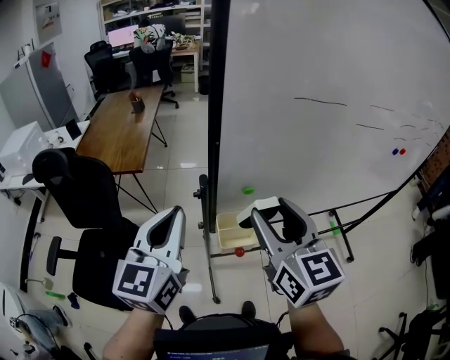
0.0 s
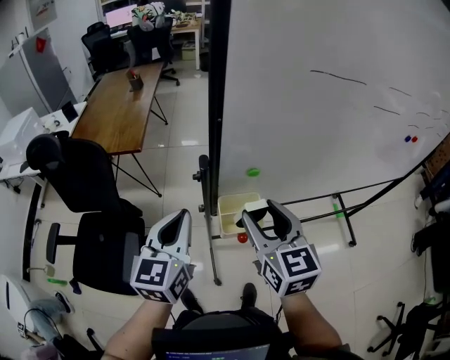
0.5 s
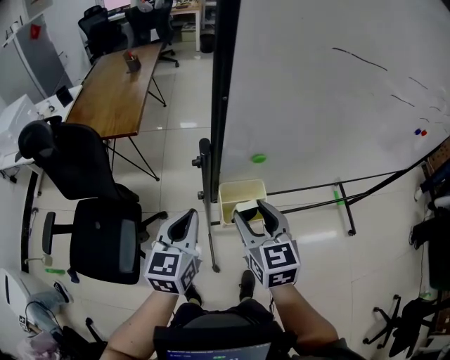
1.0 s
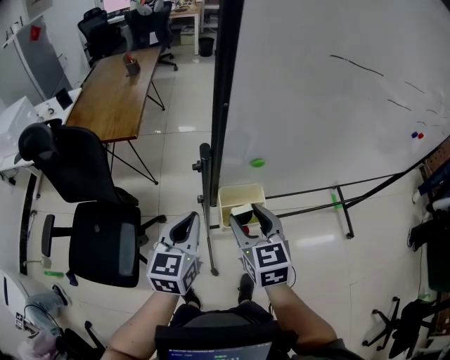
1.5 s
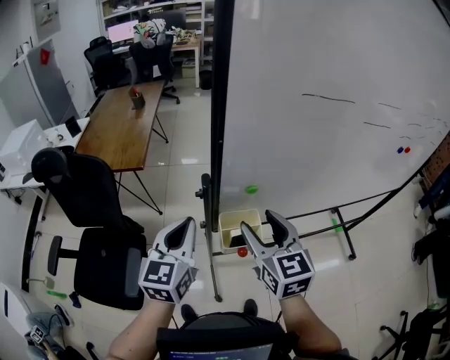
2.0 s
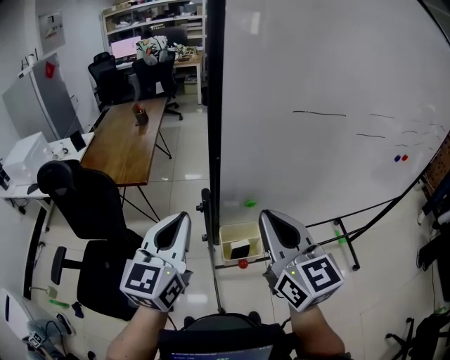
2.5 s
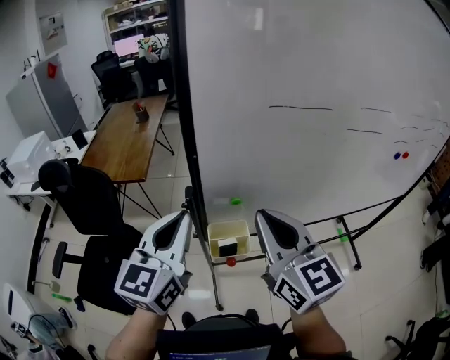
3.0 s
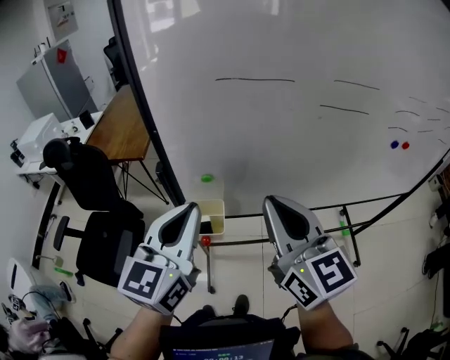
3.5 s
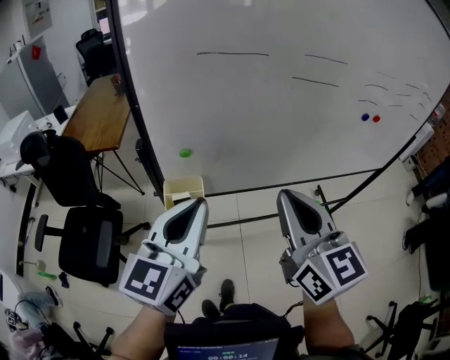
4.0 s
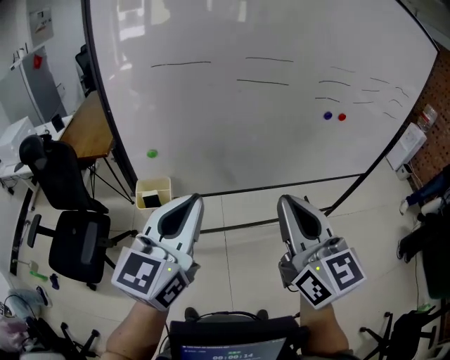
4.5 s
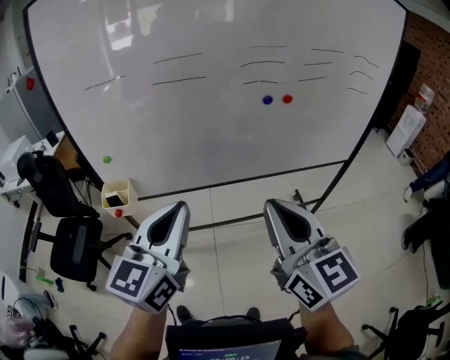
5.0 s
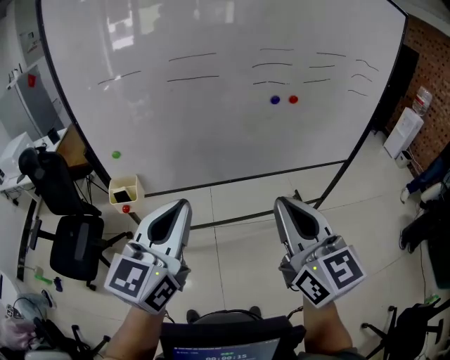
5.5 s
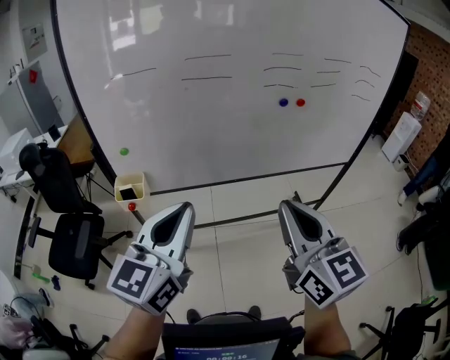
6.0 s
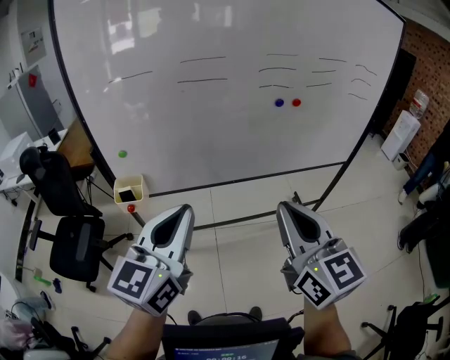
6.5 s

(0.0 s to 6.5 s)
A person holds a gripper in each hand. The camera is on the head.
0.0 s - 2.0 s: The grippers both shift downward by roughly 10 cm.
2.0 s - 4.5 s: The grippers both shift to the right, backward and upward by approximately 40 cm. The right gripper closes.
4.5 s - 6.5 s: The grippers both shift to the right and backward by roughly 15 cm.

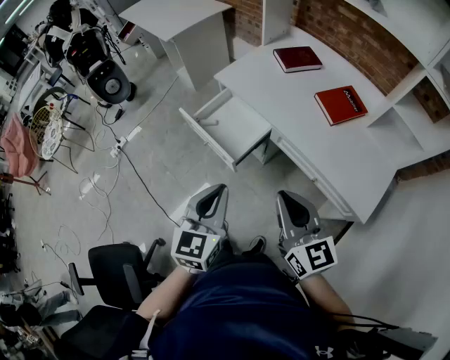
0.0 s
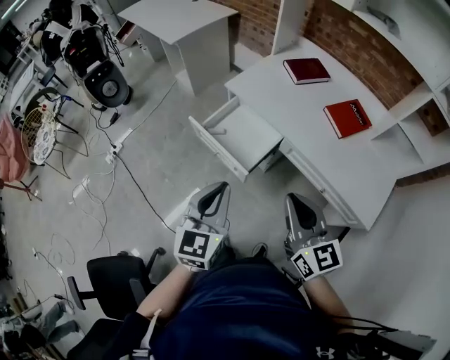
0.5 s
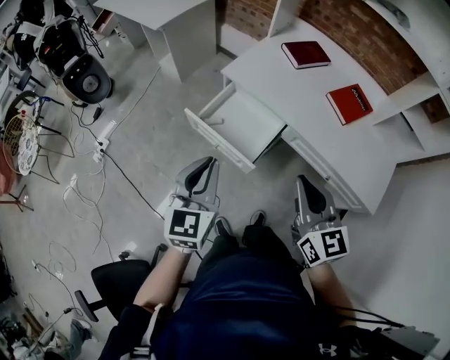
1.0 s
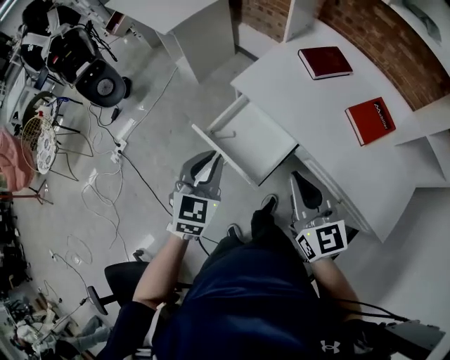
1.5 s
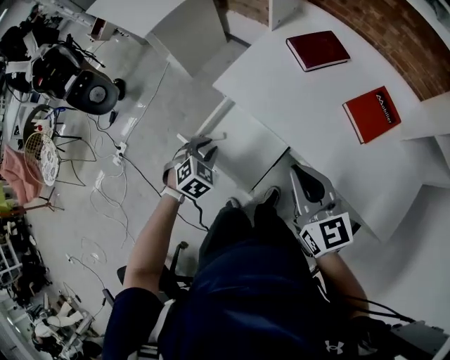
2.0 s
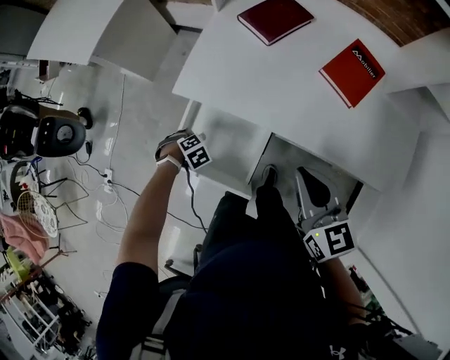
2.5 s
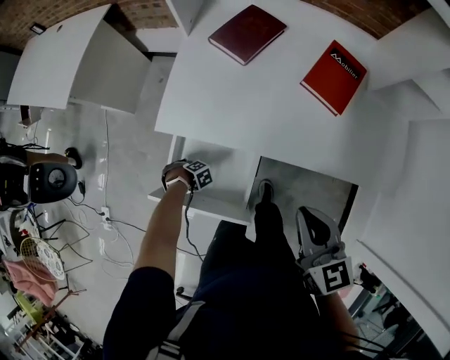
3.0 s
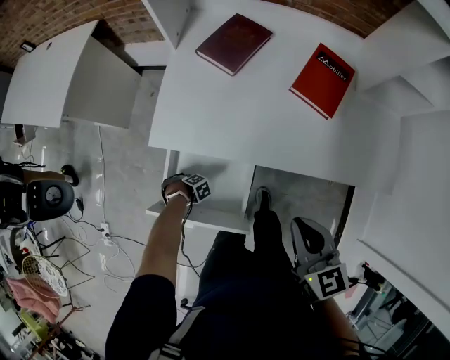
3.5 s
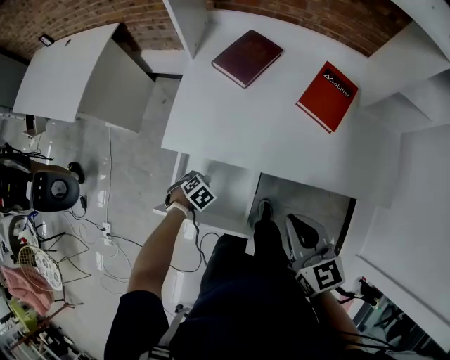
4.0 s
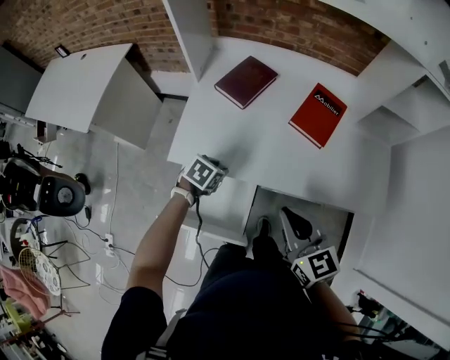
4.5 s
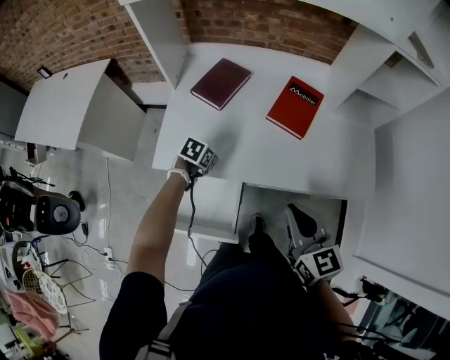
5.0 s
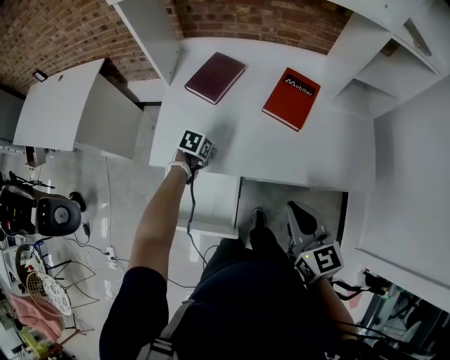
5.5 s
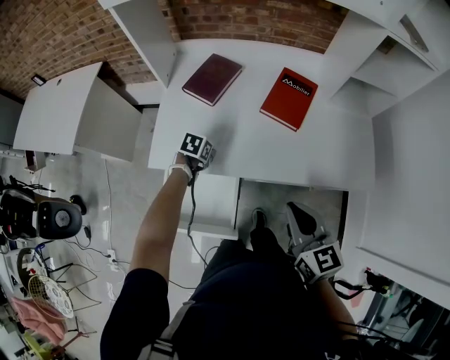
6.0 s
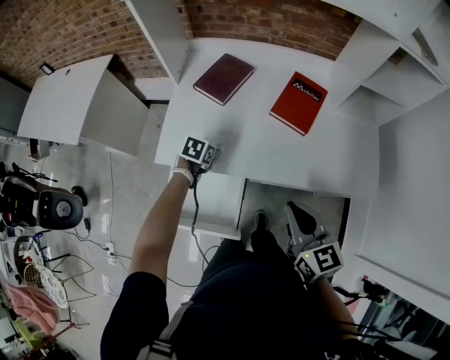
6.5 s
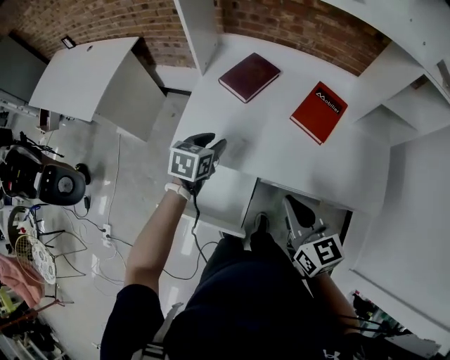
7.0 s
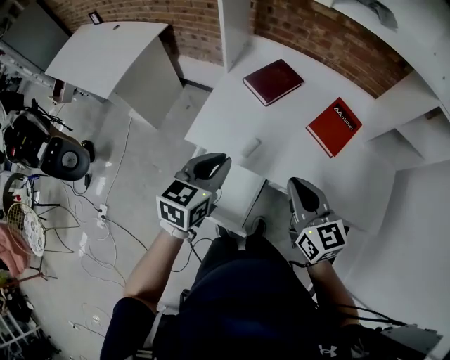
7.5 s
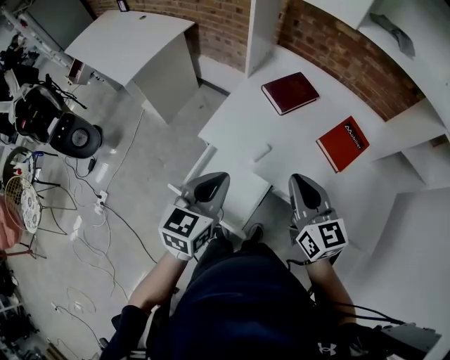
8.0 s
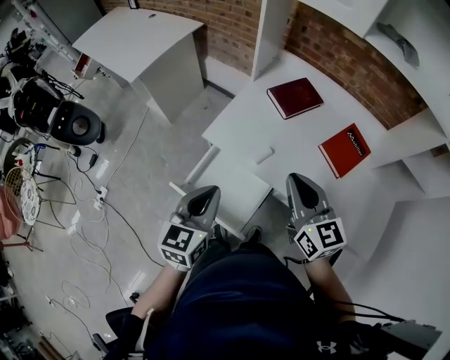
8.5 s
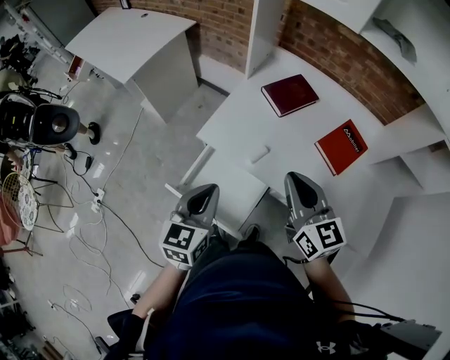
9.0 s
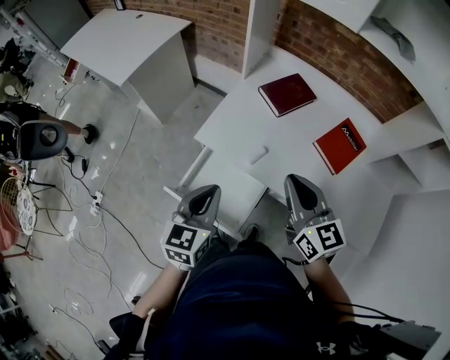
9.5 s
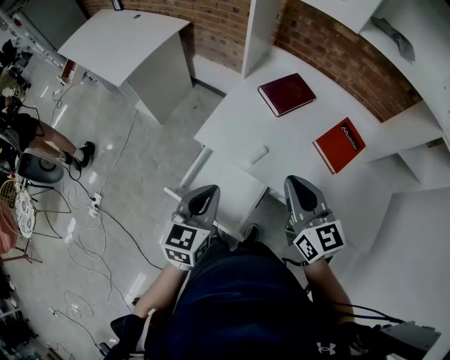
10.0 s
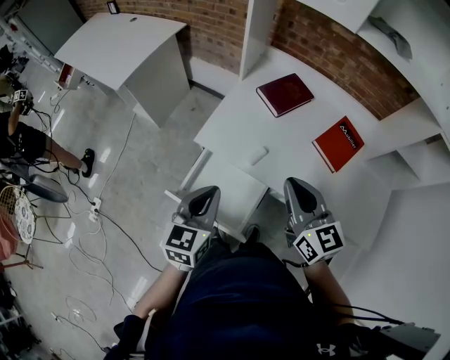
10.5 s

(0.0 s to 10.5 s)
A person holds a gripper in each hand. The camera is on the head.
0.0 s - 2.0 s: The right gripper is displaced forward by roughly 25 cm. The left gripper travels forward and downward by about 40 cm, angles its fingers downward, by some 40 degrees, and opens.
2.0 s - 4.0 s: The left gripper is displaced downward by about 20 cm, and turns by some 40 degrees, while the right gripper changes place by roughly 5 cm, and changes its angle by about 30 degrees.
4.0 s - 6.5 s: The left gripper changes place by approximately 25 cm, and swivels approximately 30 degrees. Meanwhile the right gripper ends up about 10 cm from where it was.
6.5 s - 8.5 s: The right gripper ends up about 15 cm from where it was, and rotates approximately 30 degrees; the left gripper travels upward by about 25 cm, points its fingers some 40 degrees further upward, and closes its fingers.
8.5 s - 10.5 s: There are only small adjustments of the grippers.

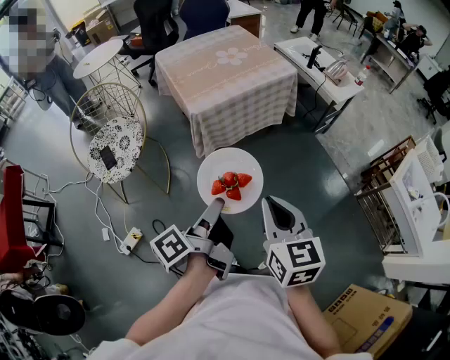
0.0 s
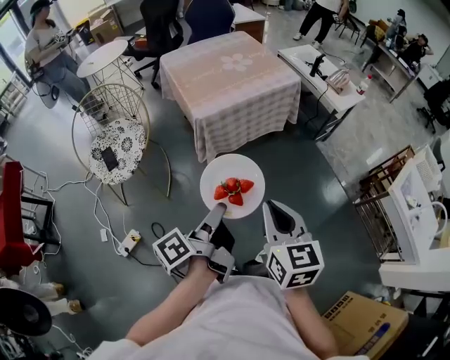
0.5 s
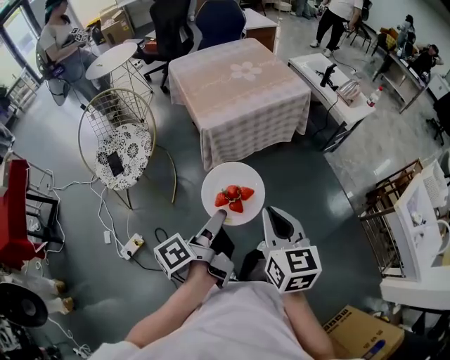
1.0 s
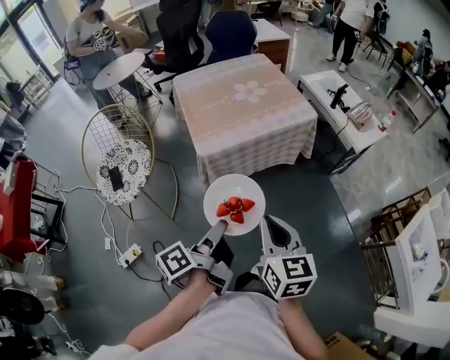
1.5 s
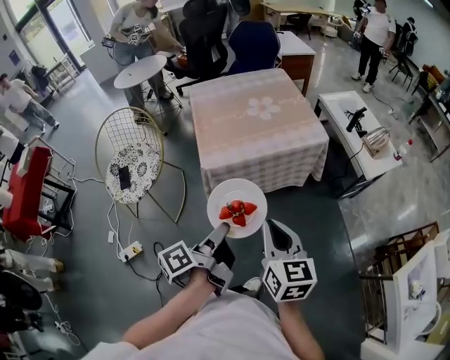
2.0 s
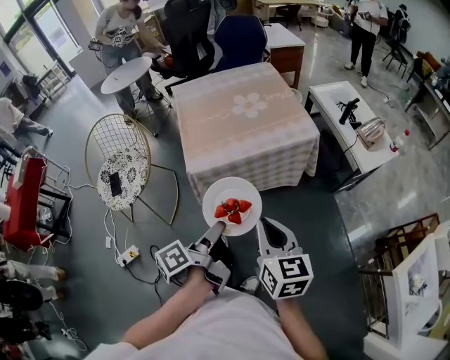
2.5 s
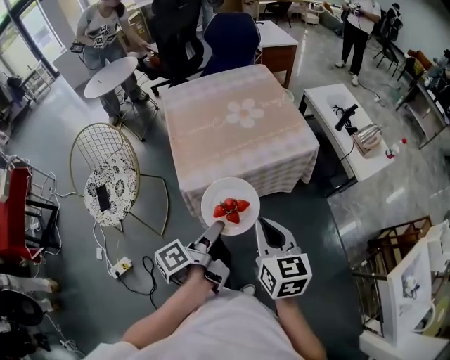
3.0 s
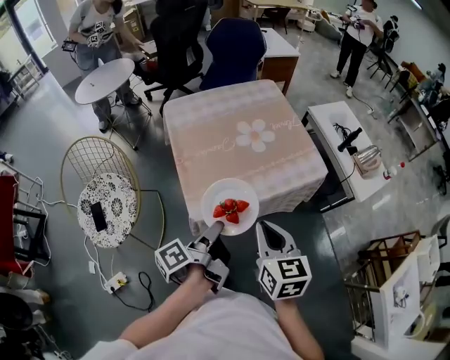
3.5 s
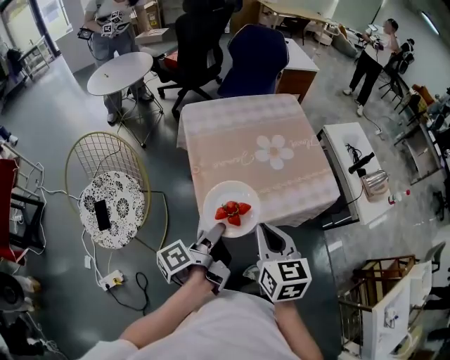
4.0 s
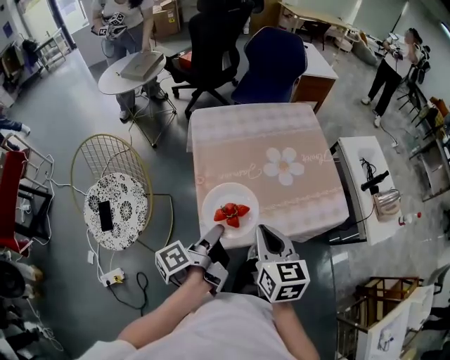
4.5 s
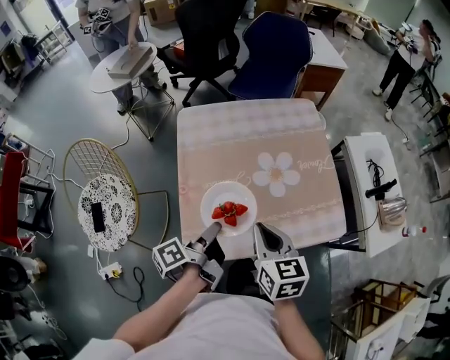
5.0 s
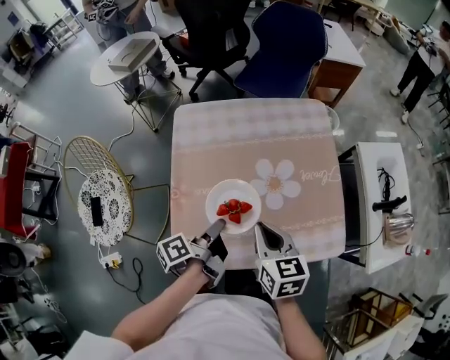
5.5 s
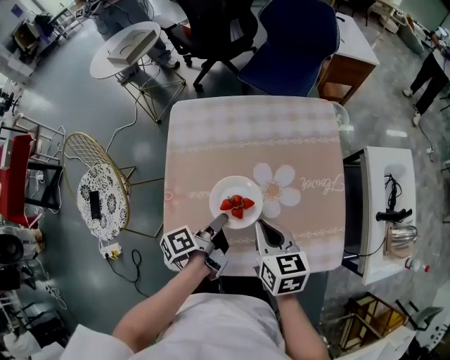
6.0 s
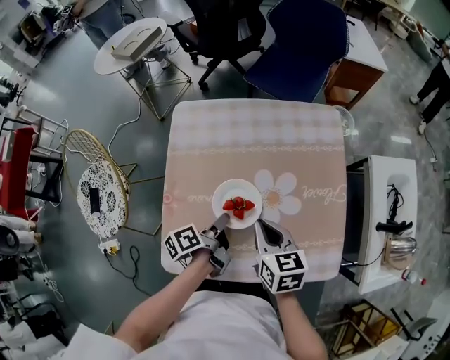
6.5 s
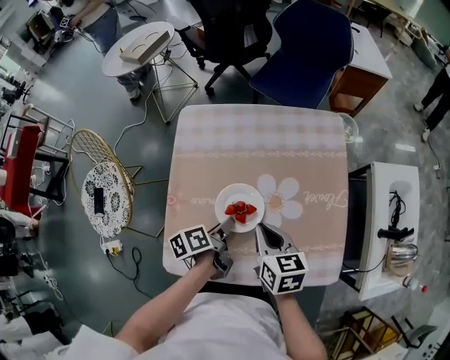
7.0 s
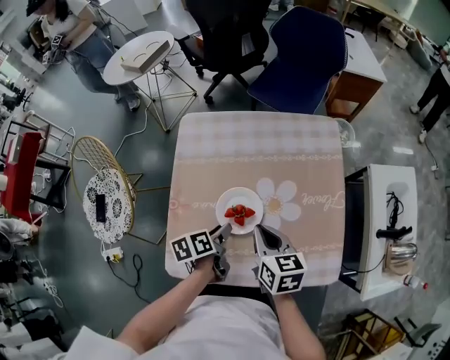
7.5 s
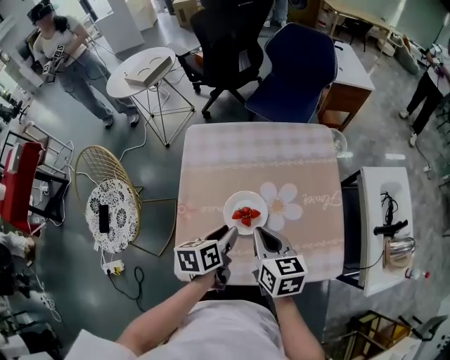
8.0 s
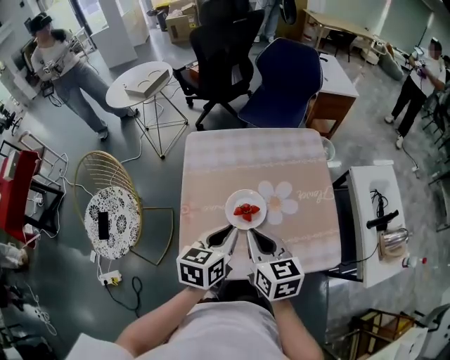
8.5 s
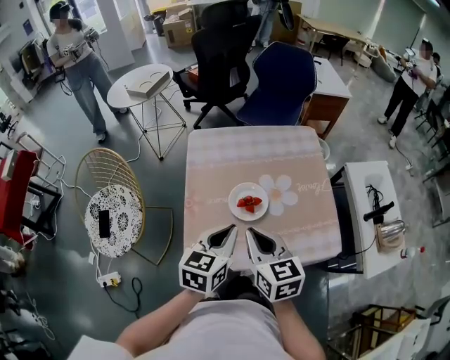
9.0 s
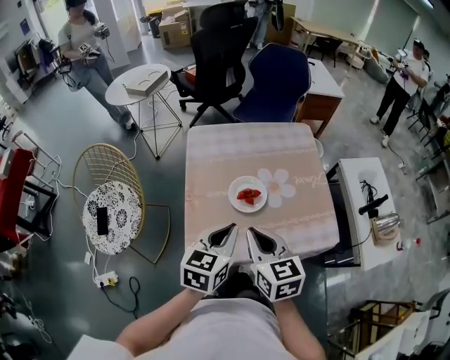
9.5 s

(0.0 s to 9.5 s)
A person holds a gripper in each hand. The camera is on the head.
0.0 s - 2.0 s: The right gripper changes place by about 25 cm.
2.0 s - 4.0 s: The right gripper changes place by some 30 cm.
4.0 s - 5.5 s: The right gripper moves about 25 cm.
5.5 s - 7.5 s: The right gripper shifts by some 10 cm.
7.5 s - 9.5 s: The right gripper moves about 20 cm.
